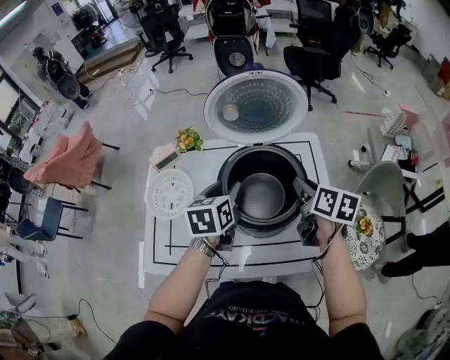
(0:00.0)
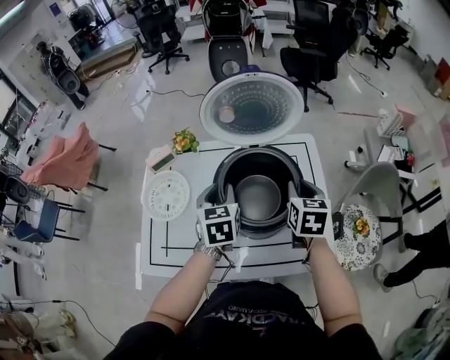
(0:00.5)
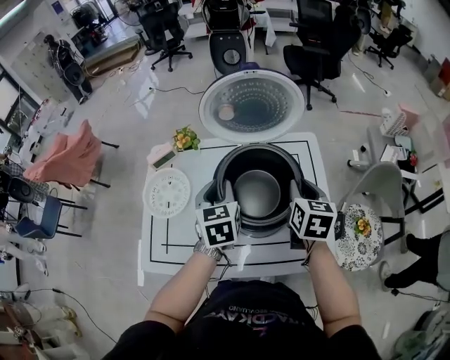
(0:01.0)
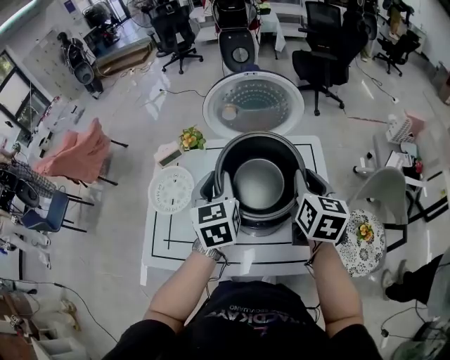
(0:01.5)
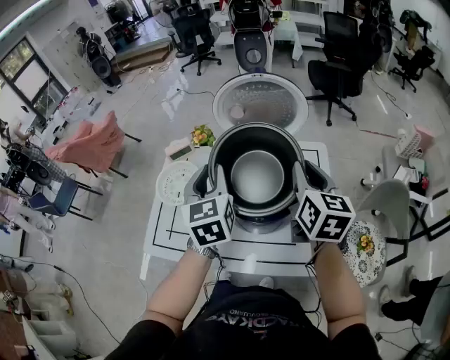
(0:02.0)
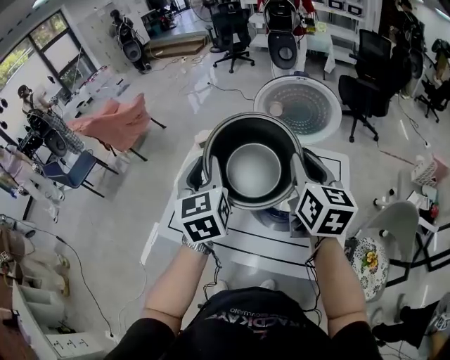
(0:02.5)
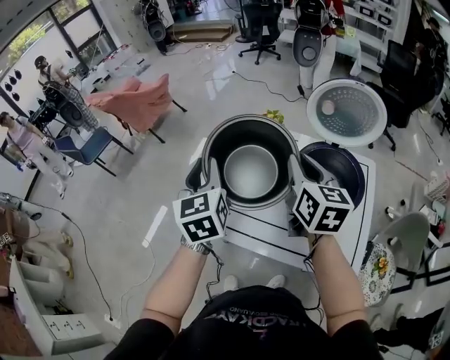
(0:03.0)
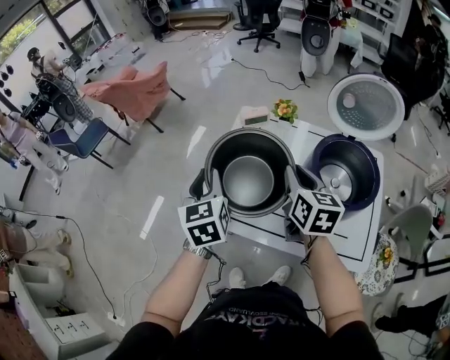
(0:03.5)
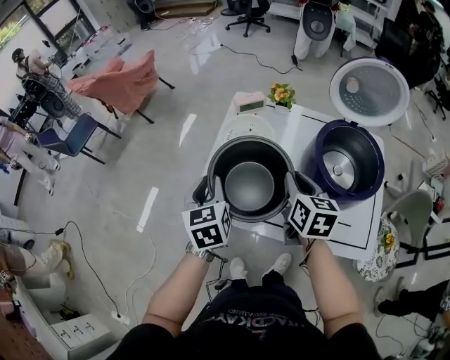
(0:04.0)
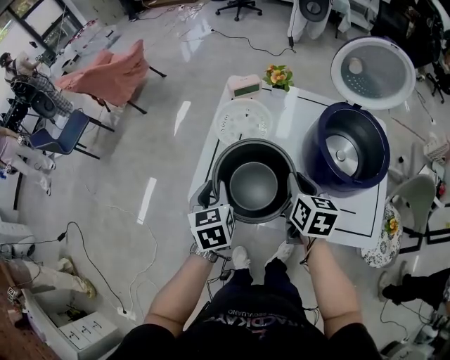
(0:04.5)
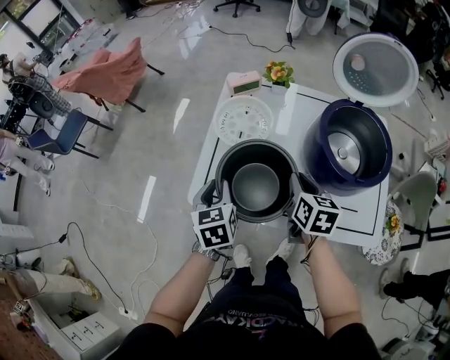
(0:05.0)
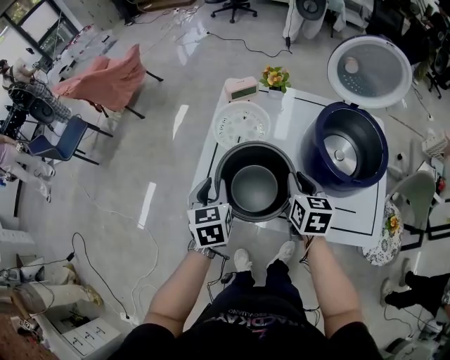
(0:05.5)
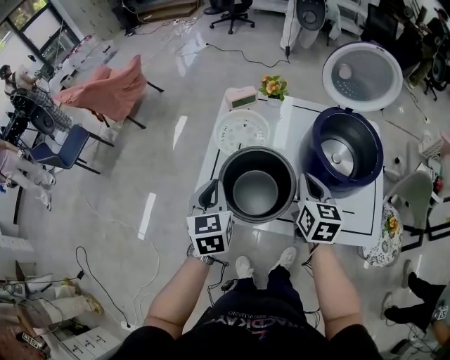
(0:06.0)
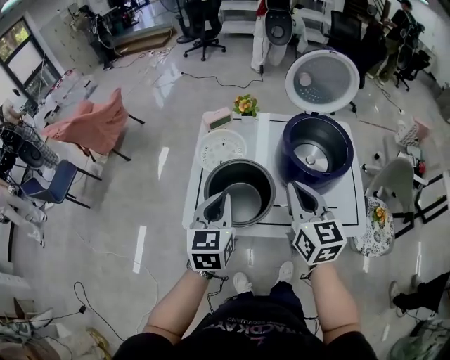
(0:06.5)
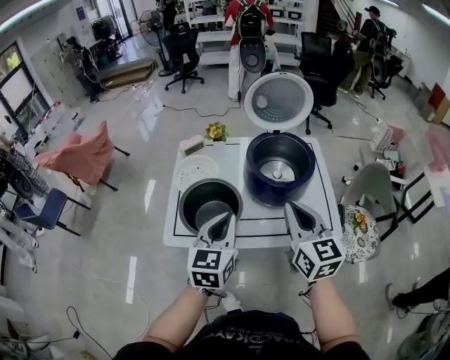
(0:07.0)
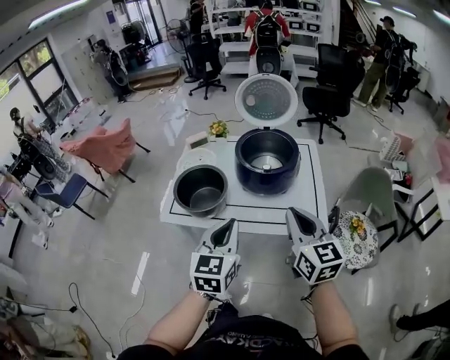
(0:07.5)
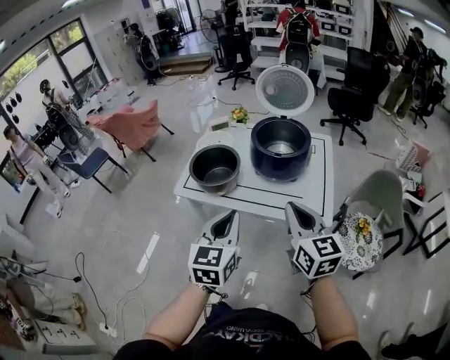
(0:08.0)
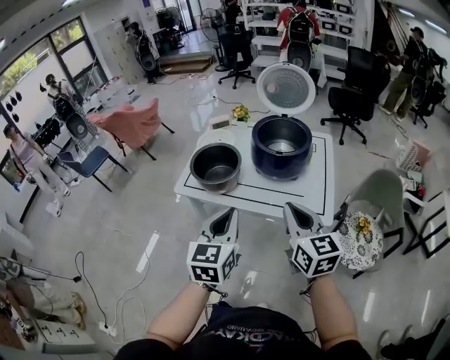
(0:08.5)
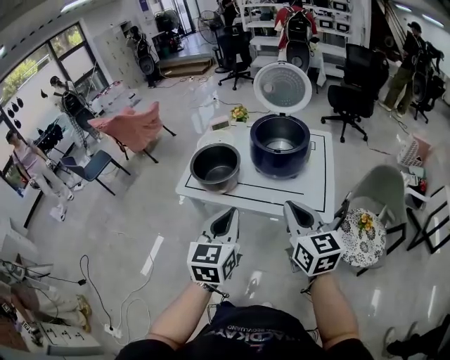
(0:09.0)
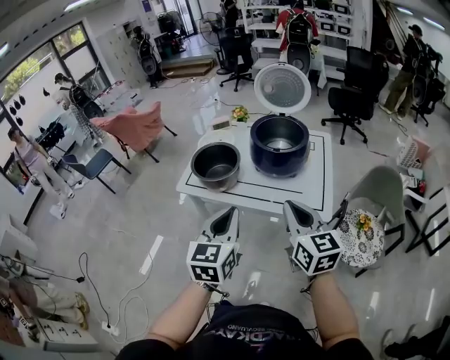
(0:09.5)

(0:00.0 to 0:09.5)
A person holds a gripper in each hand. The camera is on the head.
0:00.0 - 0:02.0: Both grippers move upward, approximately 10 cm. The left gripper rotates roughly 30 degrees, and closes up. The right gripper swivels some 30 degrees.
0:02.0 - 0:04.0: The right gripper moves to the left and downward, some 35 cm, and rotates roughly 20 degrees. Meanwhile the left gripper shifts roughly 35 cm to the left.
0:04.0 - 0:05.5: Both grippers travel together downward, some 10 cm.
0:05.5 - 0:07.5: The left gripper moves to the right, backward and upward, some 40 cm, rotates about 30 degrees, and closes up. The right gripper is displaced backward, upward and to the right by roughly 40 cm, and rotates some 30 degrees.
0:07.5 - 0:09.5: The two grippers go approximately 10 cm backward.

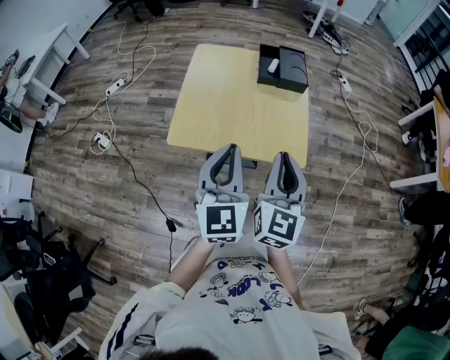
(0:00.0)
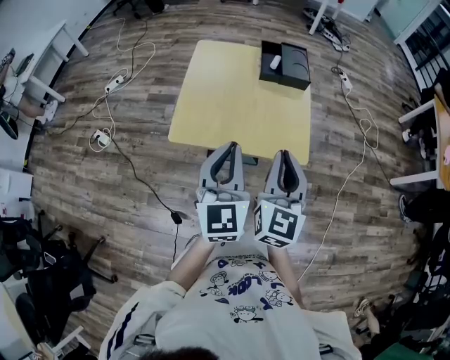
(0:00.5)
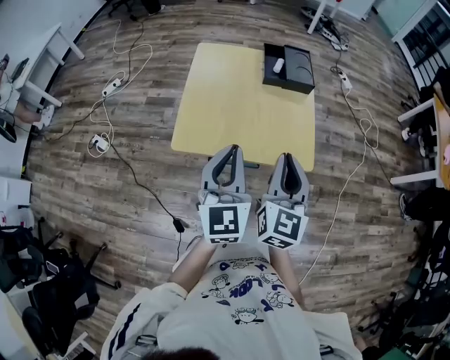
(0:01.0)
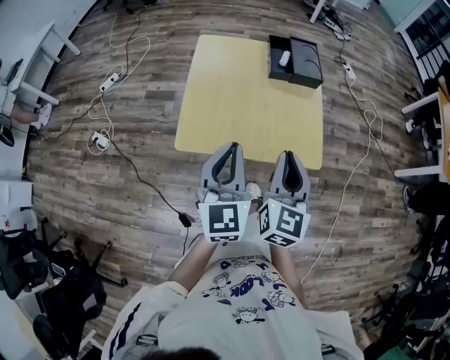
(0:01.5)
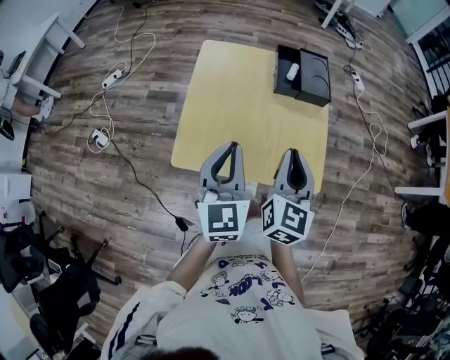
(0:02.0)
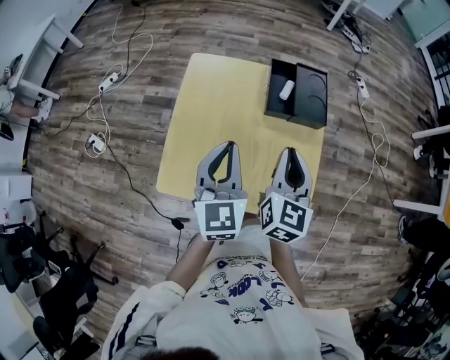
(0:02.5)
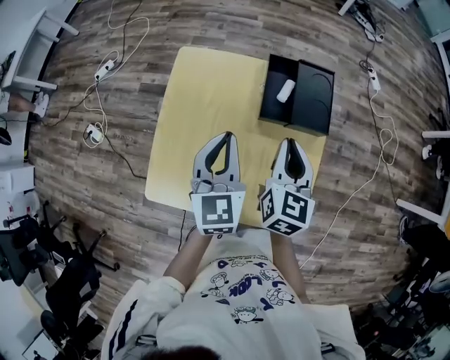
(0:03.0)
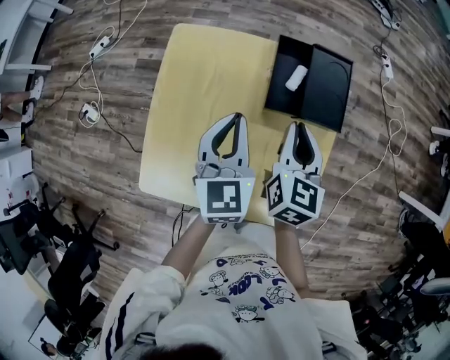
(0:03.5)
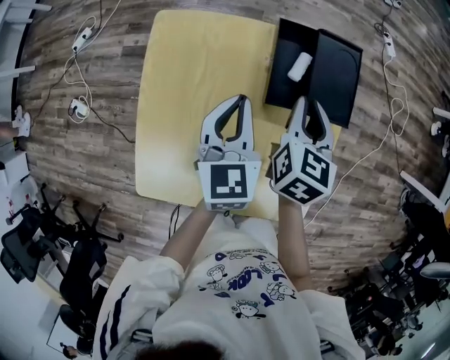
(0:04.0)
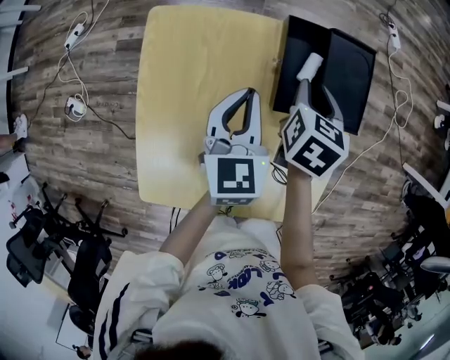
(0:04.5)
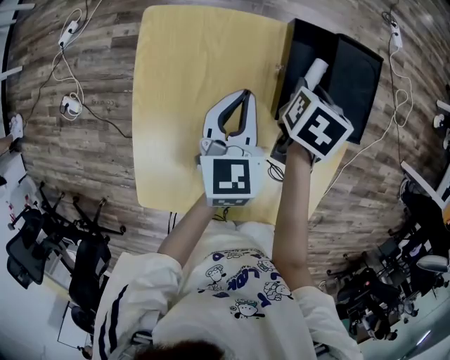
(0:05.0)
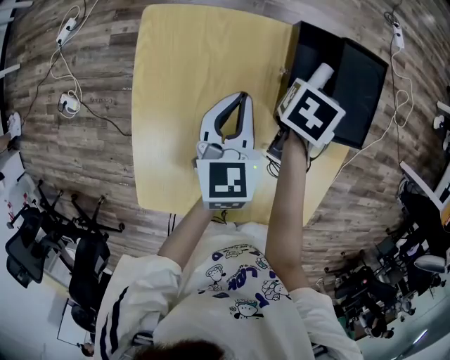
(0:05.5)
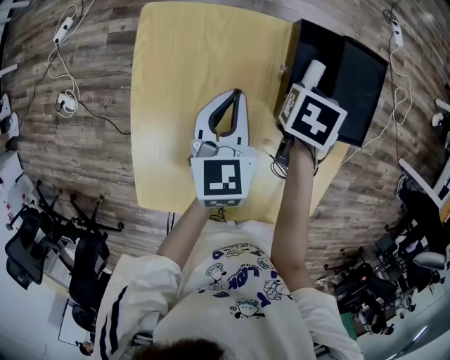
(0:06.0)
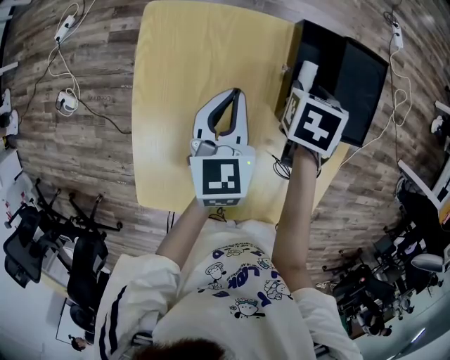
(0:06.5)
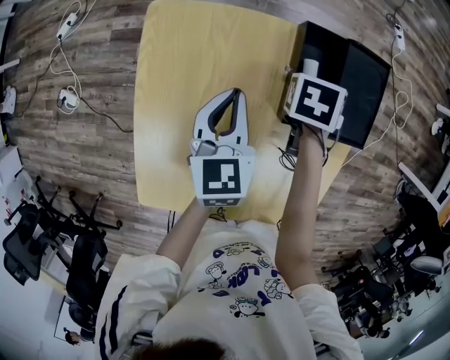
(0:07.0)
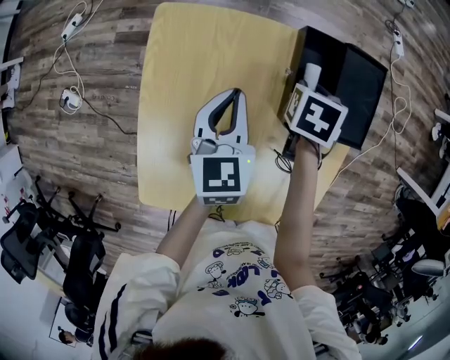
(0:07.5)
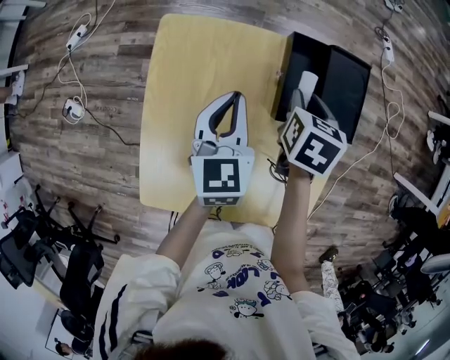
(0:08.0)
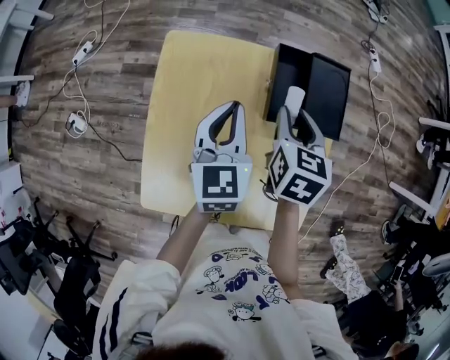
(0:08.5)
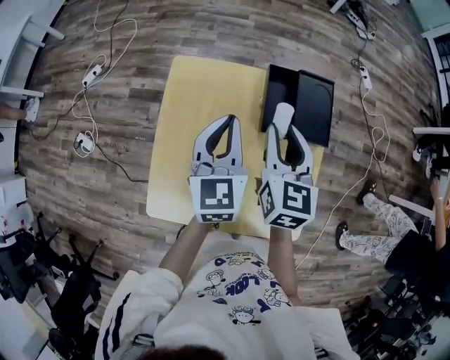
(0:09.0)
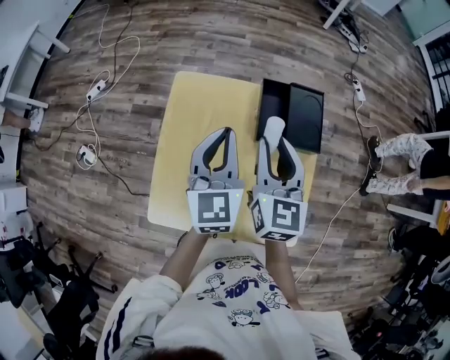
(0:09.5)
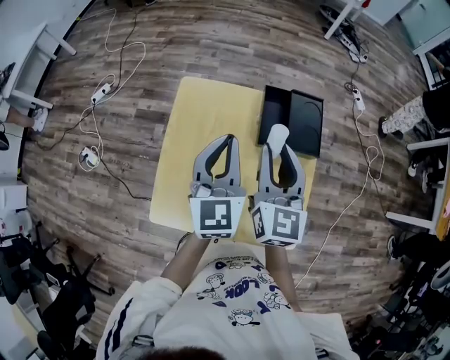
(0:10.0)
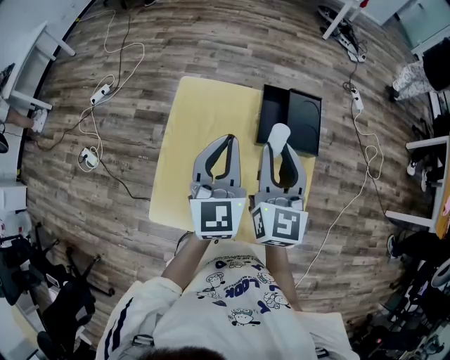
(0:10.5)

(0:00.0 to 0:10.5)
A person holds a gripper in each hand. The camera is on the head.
0:00.0 - 0:02.0: The left gripper goes roughly 15 cm forward and to the left, while the right gripper travels forward by about 15 cm.
0:02.0 - 0:04.0: The two grippers go approximately 30 cm forward and downward. The right gripper swivels roughly 20 degrees.
0:04.0 - 0:06.5: The left gripper heads downward, covering about 5 cm. The right gripper travels downward and forward by about 10 cm, angles its fingers downward, by roughly 30 degrees, and opens.
0:06.5 - 0:08.5: The right gripper heads upward and backward, covering roughly 15 cm, and swivels approximately 30 degrees. The left gripper moves upward, roughly 10 cm.
0:08.5 - 0:10.5: Both grippers travel together upward and backward, approximately 15 cm. The right gripper angles its fingers upward, by approximately 40 degrees.

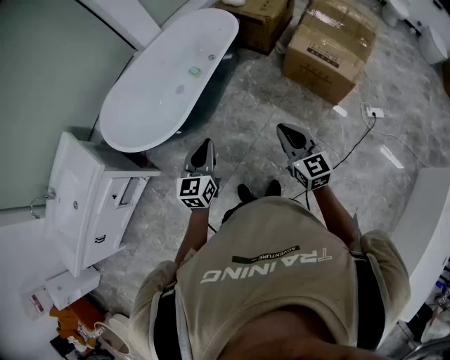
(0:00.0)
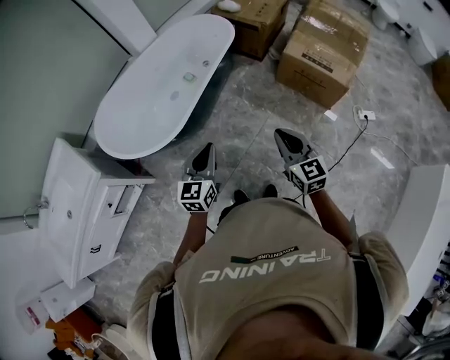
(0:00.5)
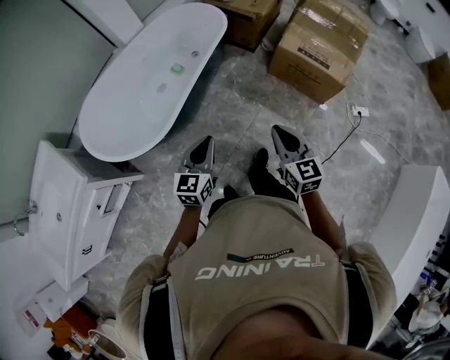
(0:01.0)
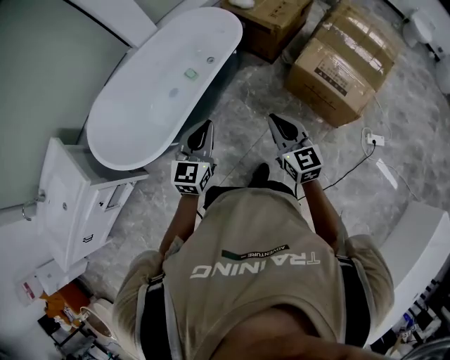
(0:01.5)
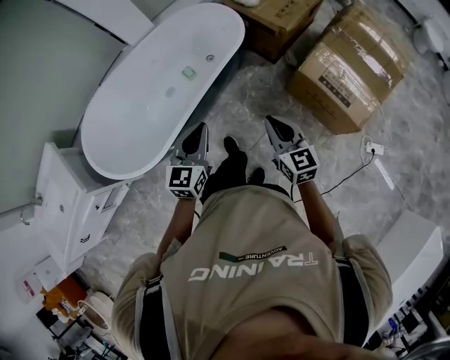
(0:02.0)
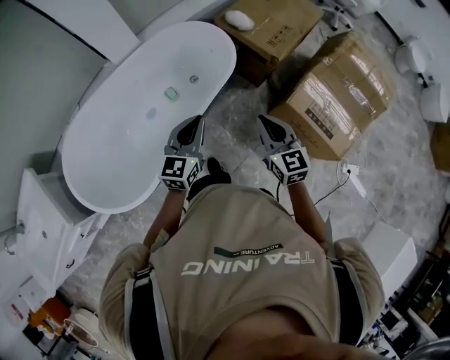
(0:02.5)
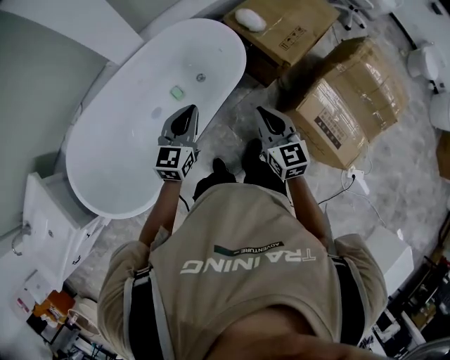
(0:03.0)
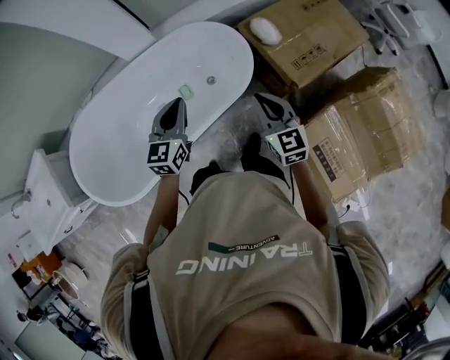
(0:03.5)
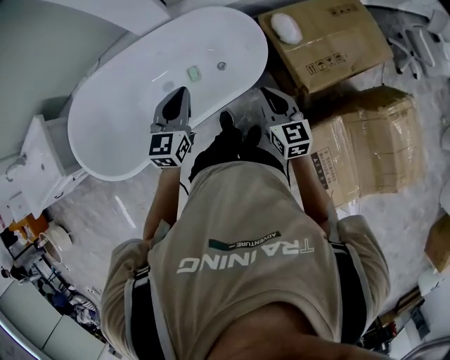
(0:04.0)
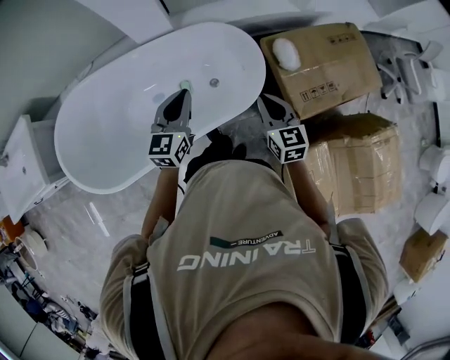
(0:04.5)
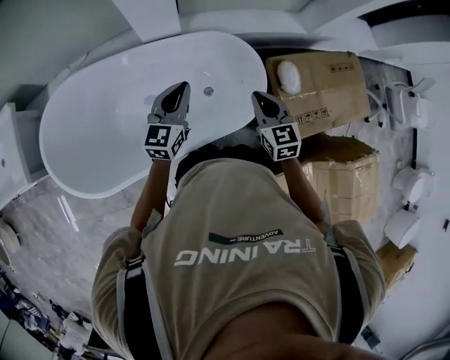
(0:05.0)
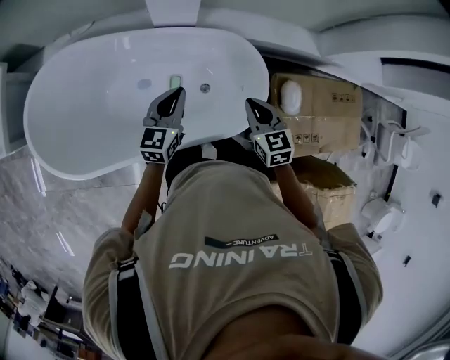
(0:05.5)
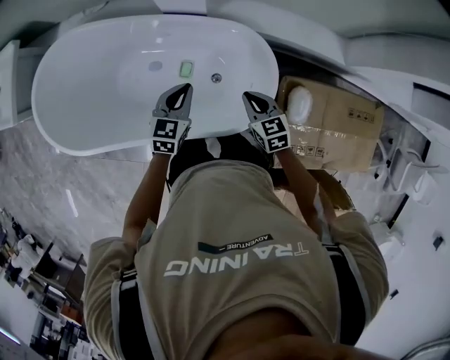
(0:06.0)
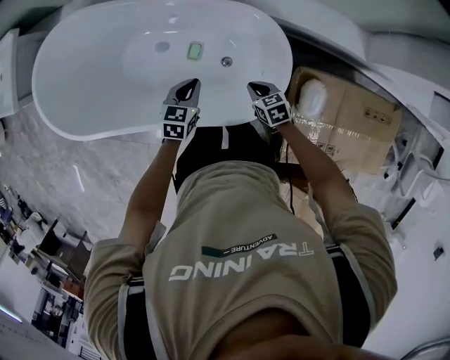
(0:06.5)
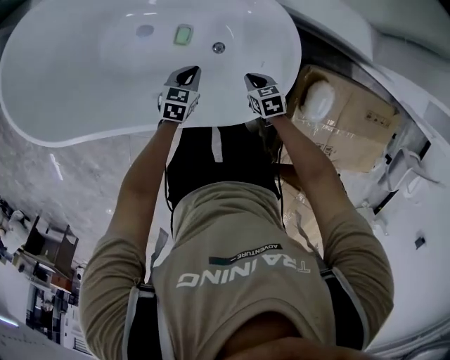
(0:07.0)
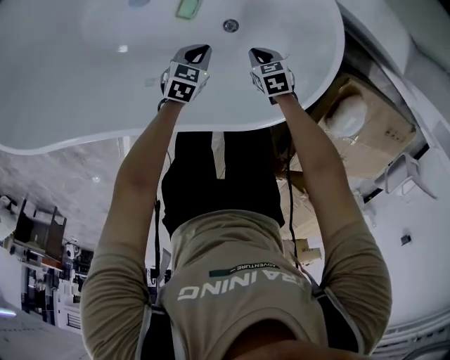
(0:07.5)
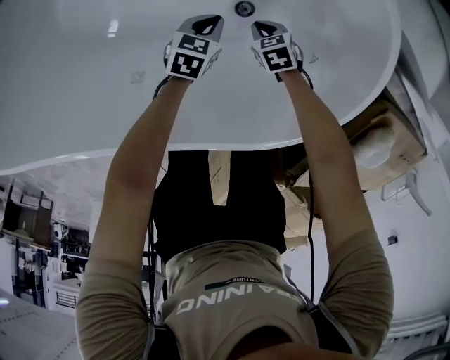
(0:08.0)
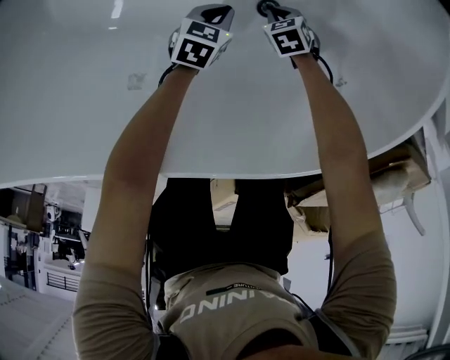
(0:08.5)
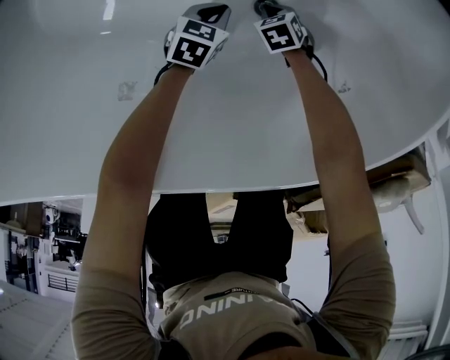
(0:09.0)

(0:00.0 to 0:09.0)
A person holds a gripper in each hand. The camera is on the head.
0:00.0 - 0:02.0: Both grippers move forward, about 30 cm.
0:02.0 - 0:04.5: The two grippers travel together, approximately 50 cm. The left gripper swivels approximately 30 degrees. Meanwhile the right gripper changes its angle by about 30 degrees.
0:04.5 - 0:07.0: Both grippers travel together downward, roughly 40 cm. The right gripper tips its fingers downward by some 40 degrees; the left gripper tilts its fingers approximately 40 degrees downward.
0:07.0 - 0:09.0: Both grippers move downward, roughly 40 cm. The right gripper turns by roughly 30 degrees.
